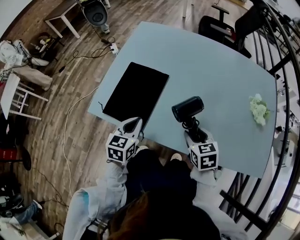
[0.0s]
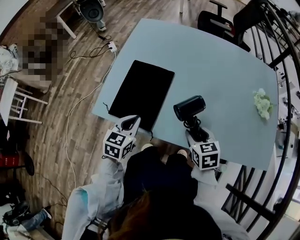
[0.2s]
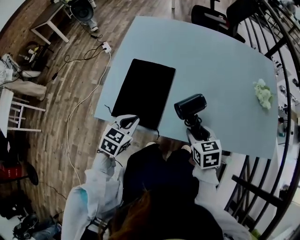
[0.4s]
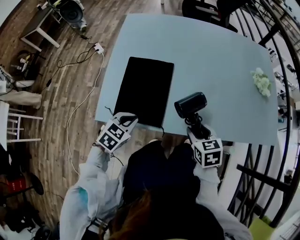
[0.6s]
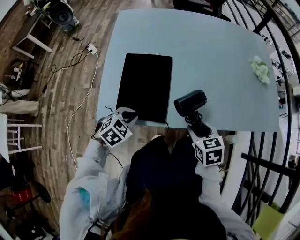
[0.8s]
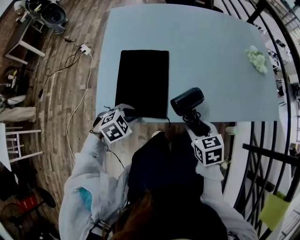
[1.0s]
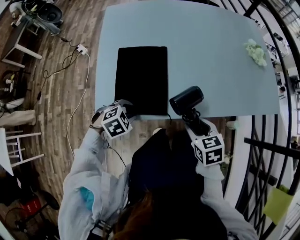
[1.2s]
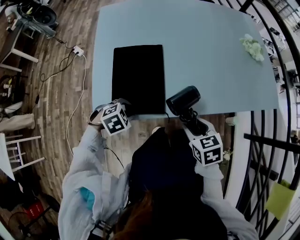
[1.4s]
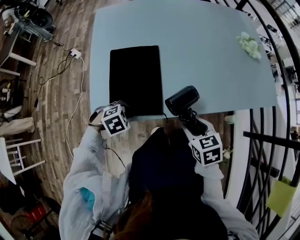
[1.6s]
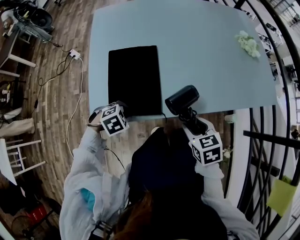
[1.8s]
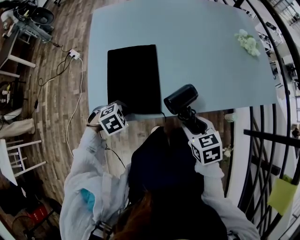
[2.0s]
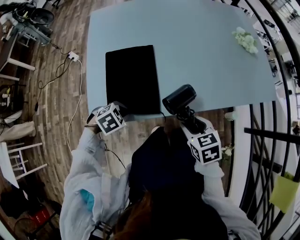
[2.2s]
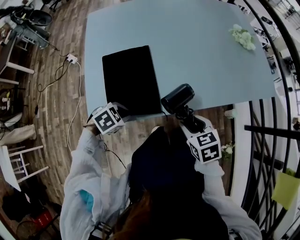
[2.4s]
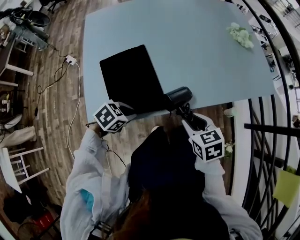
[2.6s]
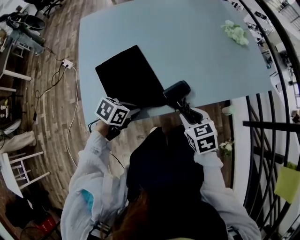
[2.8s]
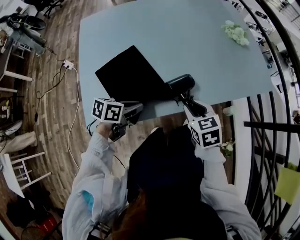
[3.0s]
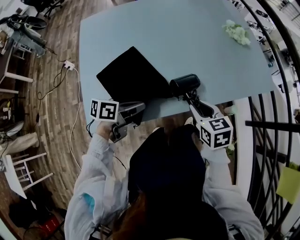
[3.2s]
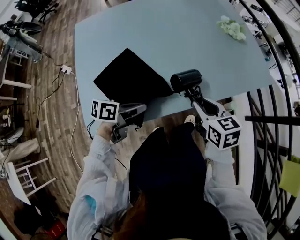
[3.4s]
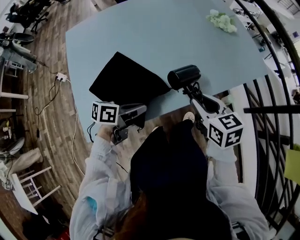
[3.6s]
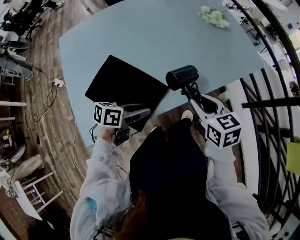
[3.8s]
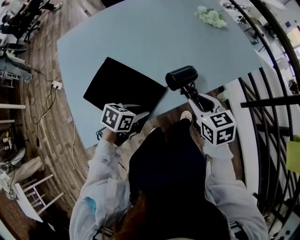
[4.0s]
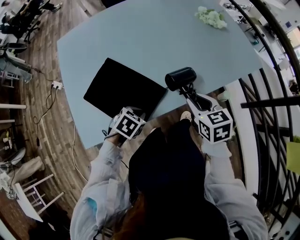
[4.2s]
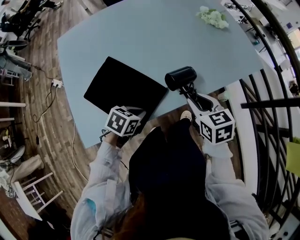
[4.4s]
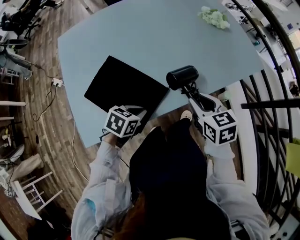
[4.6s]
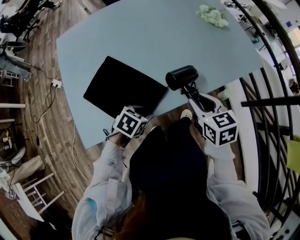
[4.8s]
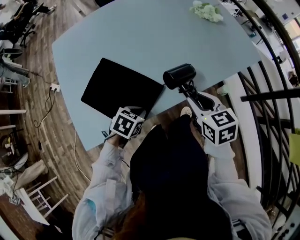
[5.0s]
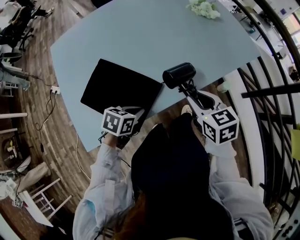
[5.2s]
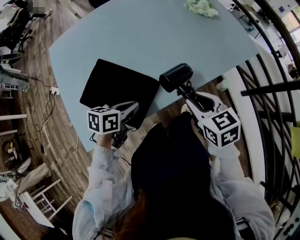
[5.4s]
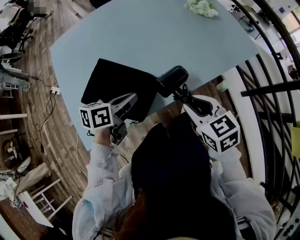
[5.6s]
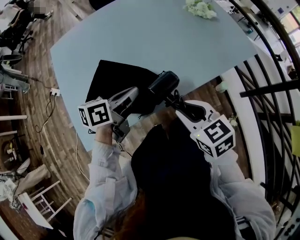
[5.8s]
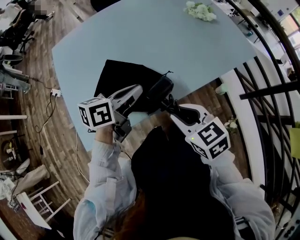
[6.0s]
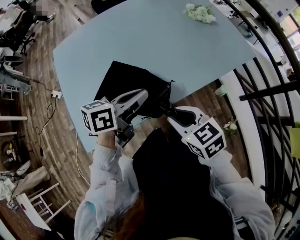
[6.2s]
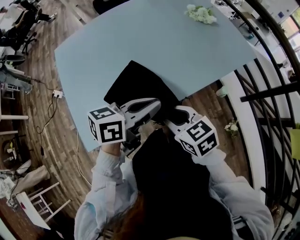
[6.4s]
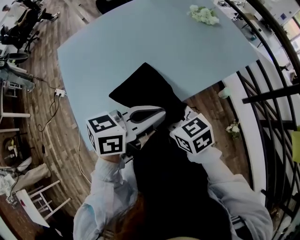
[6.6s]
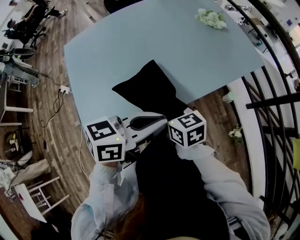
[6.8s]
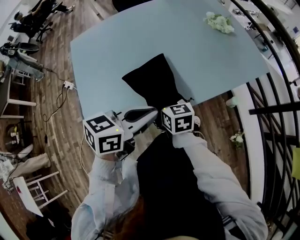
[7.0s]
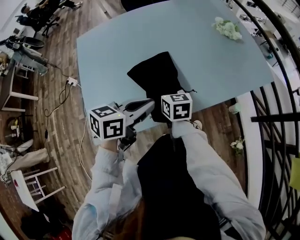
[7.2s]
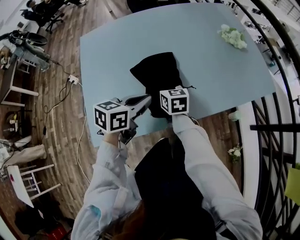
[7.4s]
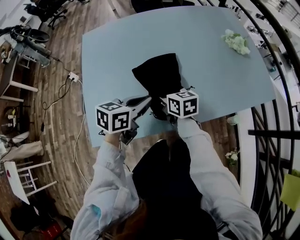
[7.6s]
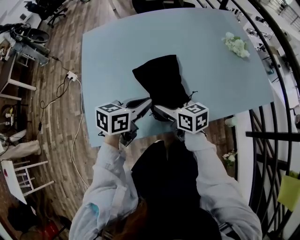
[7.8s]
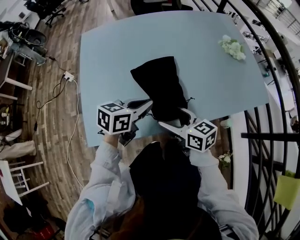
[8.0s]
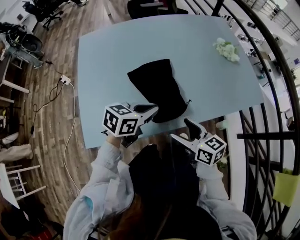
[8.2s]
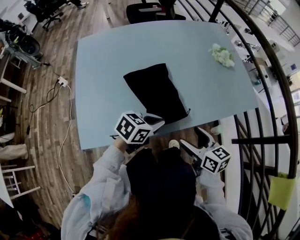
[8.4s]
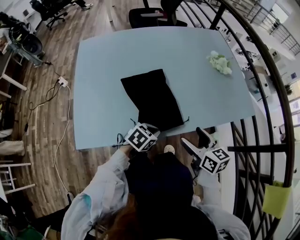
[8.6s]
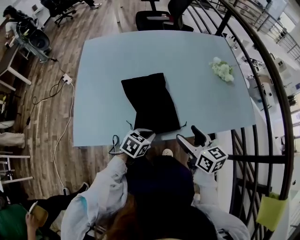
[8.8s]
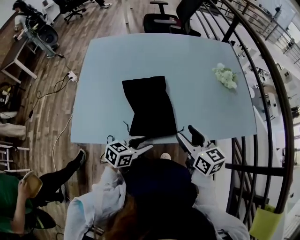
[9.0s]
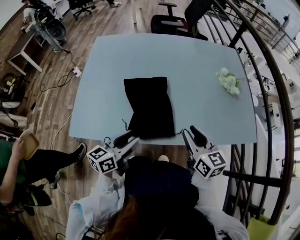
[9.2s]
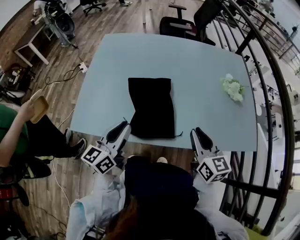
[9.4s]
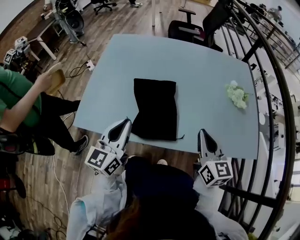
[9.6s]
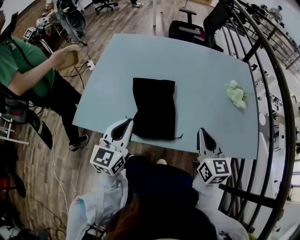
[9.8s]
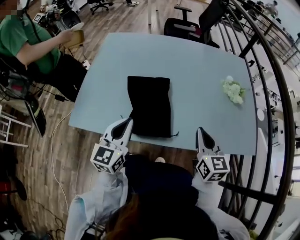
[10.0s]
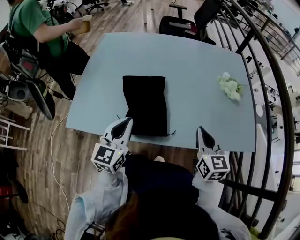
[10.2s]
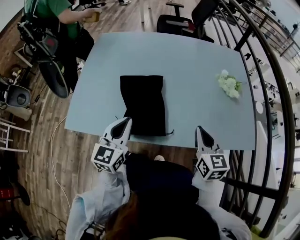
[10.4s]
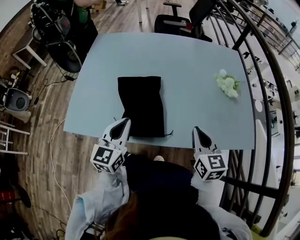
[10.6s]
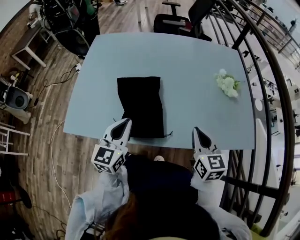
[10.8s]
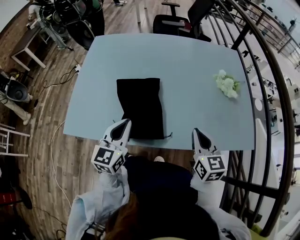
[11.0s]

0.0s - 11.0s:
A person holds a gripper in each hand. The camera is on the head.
0.0s - 1.6s: The right gripper changes place by roughly 15 cm, and rotates some 20 degrees. The left gripper travels downward by roughly 15 cm, tilts its fingers about 40 degrees downward, and opens.
1.6s - 3.2s: The right gripper shifts approximately 5 cm forward. The left gripper shifts about 15 cm upward, forward and to the right, angles its fingers upward, by some 50 degrees, and closes.
3.2s - 4.8s: The left gripper heads downward, covering some 5 cm, angles its fingers downward, by approximately 30 degrees, and opens.
4.8s - 6.2s: The left gripper heads upward, covering about 20 cm, tilts its fingers approximately 40 degrees upward, and closes, while the right gripper moves backward and to the left, some 10 cm.
6.2s - 7.8s: The left gripper shifts some 10 cm to the left and downward; the right gripper travels forward and to the left by roughly 15 cm, rotates about 20 degrees, and opens.
7.8s - 9.4s: The left gripper rotates some 50 degrees, and opens, then closes again; the right gripper ends up about 25 cm from where it was, turns by roughly 20 degrees, and closes.
9.4s - 11.0s: The right gripper shifts by some 5 cm. Meanwhile the left gripper shifts some 5 cm to the right, and swivels approximately 20 degrees.

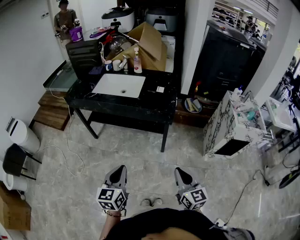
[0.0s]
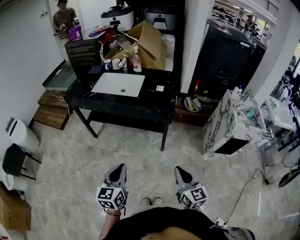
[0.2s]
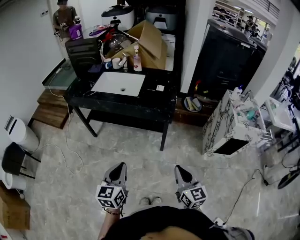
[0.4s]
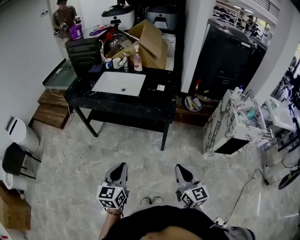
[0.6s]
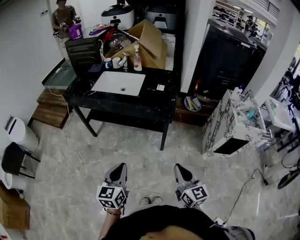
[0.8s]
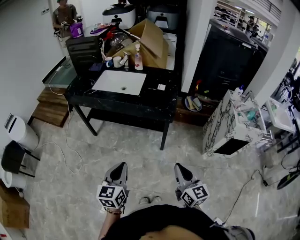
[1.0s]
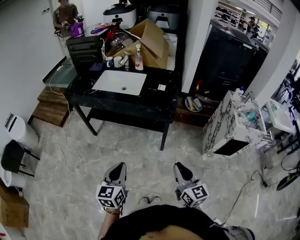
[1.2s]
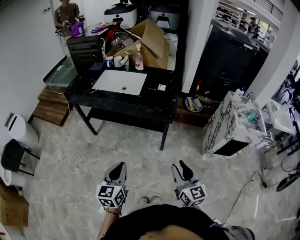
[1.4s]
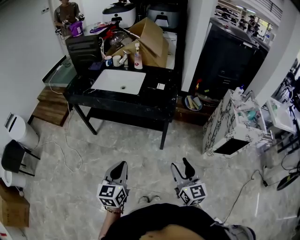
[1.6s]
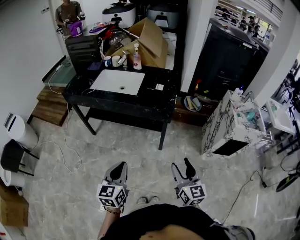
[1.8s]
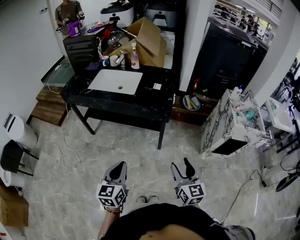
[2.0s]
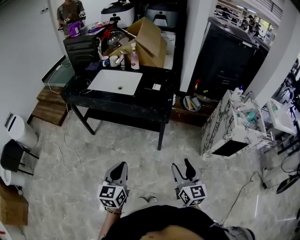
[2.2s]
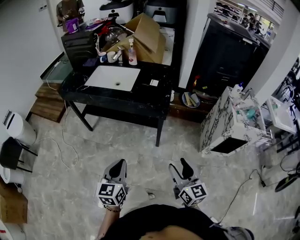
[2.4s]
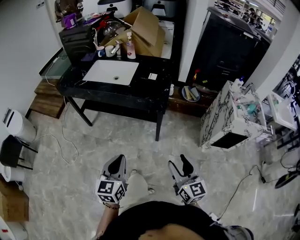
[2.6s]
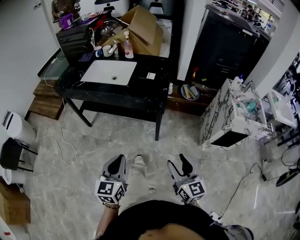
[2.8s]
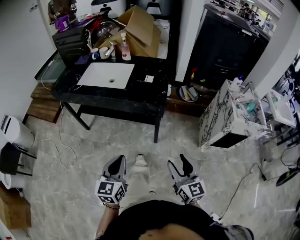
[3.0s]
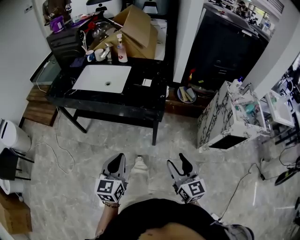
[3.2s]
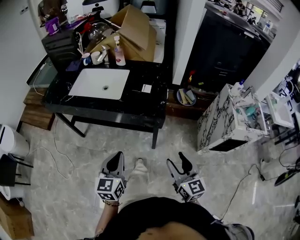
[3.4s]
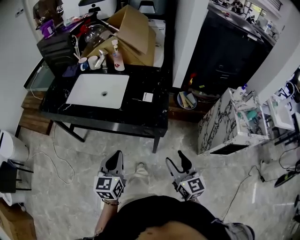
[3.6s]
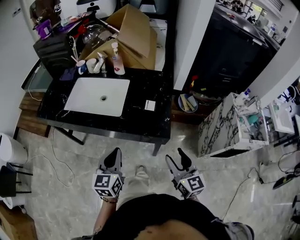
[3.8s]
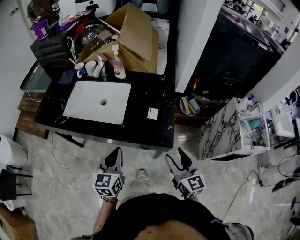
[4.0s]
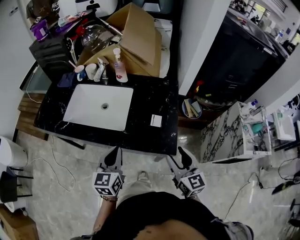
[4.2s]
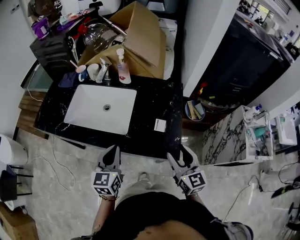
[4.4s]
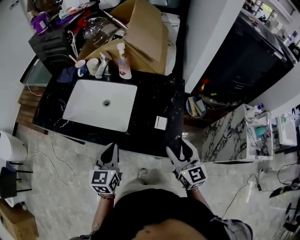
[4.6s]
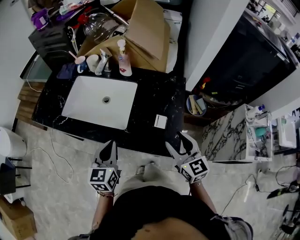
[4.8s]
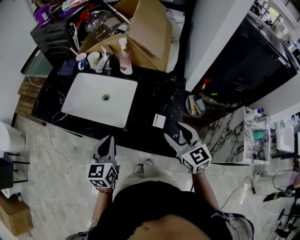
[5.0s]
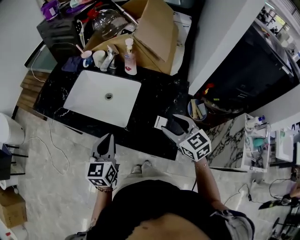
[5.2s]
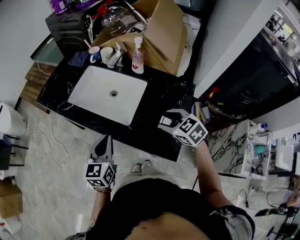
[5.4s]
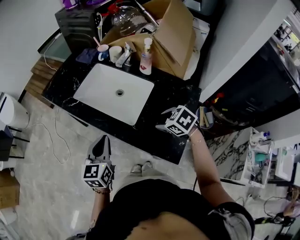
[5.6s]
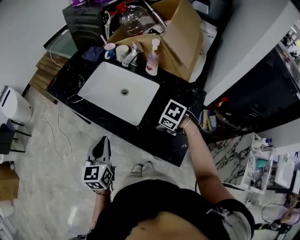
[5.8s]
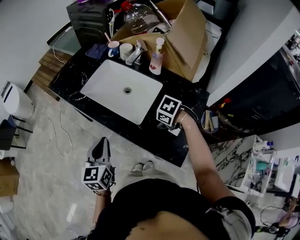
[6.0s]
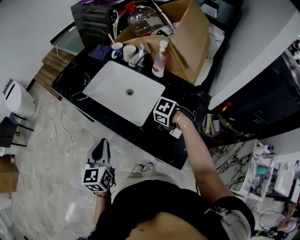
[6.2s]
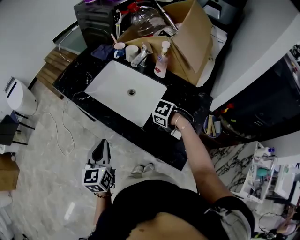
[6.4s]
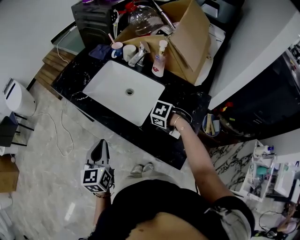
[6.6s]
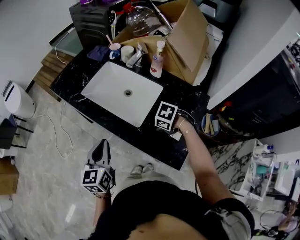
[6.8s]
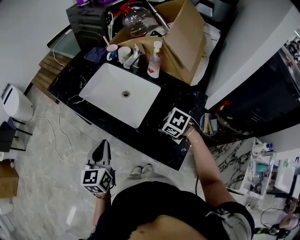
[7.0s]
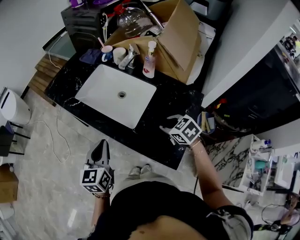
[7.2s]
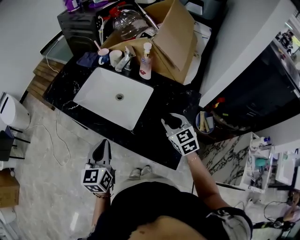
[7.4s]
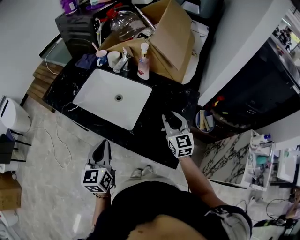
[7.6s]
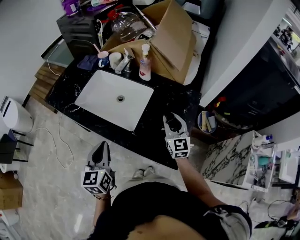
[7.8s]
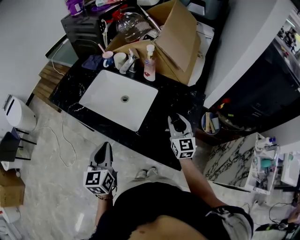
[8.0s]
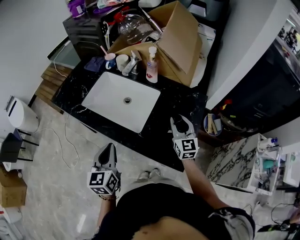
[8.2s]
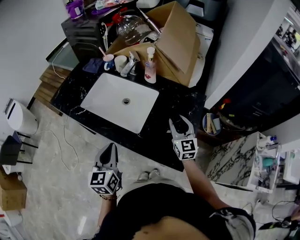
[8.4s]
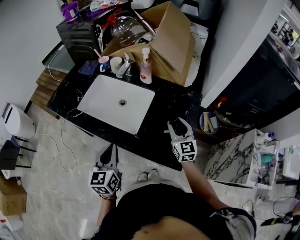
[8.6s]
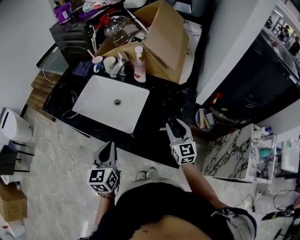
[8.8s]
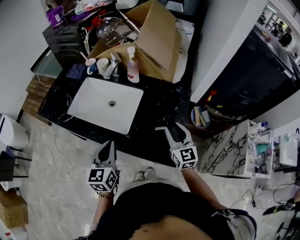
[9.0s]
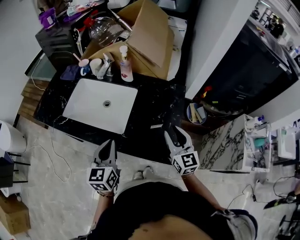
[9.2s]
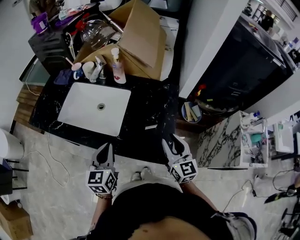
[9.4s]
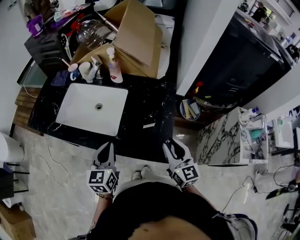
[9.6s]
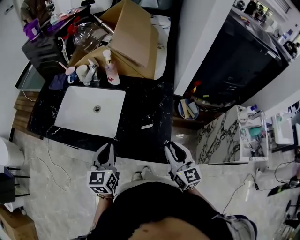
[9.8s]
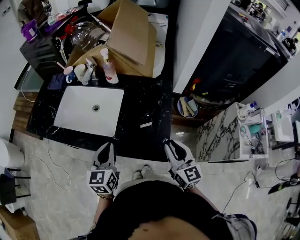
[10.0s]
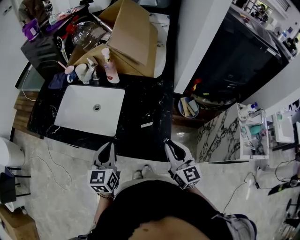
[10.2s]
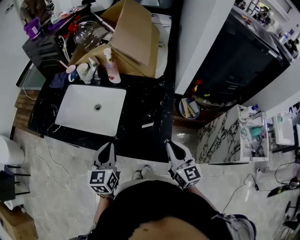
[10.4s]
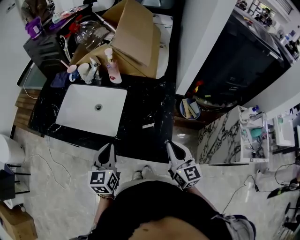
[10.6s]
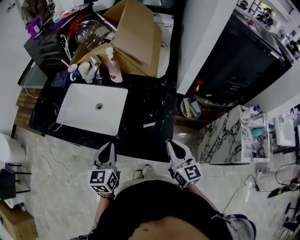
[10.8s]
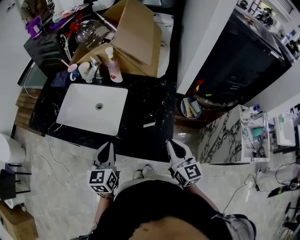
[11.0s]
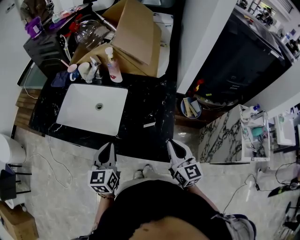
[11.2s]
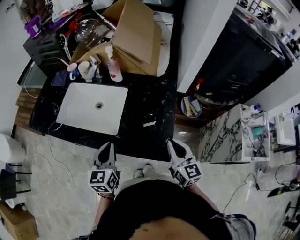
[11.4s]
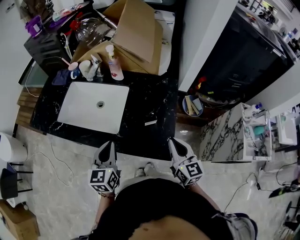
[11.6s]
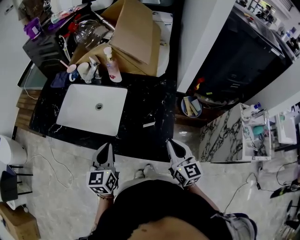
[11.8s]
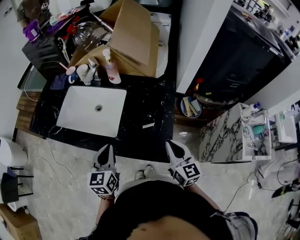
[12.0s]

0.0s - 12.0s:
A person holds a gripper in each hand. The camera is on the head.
0.0s - 1.6s: The right gripper opens.
1.6s - 3.0s: The right gripper is displaced to the right by some 5 cm, while the left gripper heads to the right and forward, covering some 10 cm.
3.0s - 4.4s: Both grippers travel together forward, some 40 cm.
4.4s - 6.0s: The right gripper shifts by approximately 20 cm, and tilts its fingers approximately 70 degrees downward. Meanwhile the left gripper ends up approximately 10 cm from where it was, and turns by about 30 degrees.
6.0s - 7.6s: The right gripper moves upward, approximately 10 cm, points its fingers about 60 degrees further upward, and closes its fingers.
7.6s - 9.0s: The right gripper moves backward, approximately 5 cm.
9.0s - 10.4s: The right gripper is displaced backward by roughly 10 cm, and closes its fingers, while the left gripper ends up roughly 5 cm from where it was.
10.4s - 12.0s: The grippers make only small movements.
